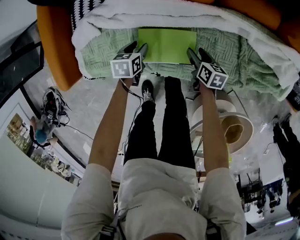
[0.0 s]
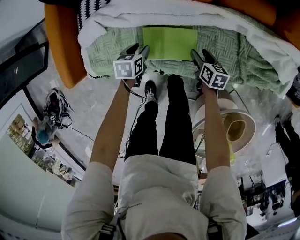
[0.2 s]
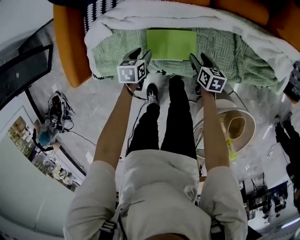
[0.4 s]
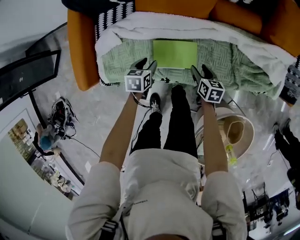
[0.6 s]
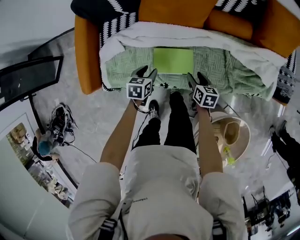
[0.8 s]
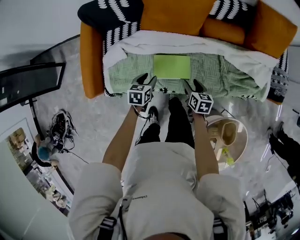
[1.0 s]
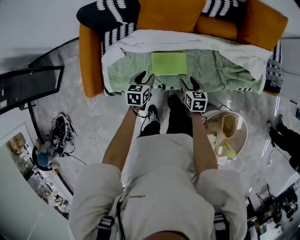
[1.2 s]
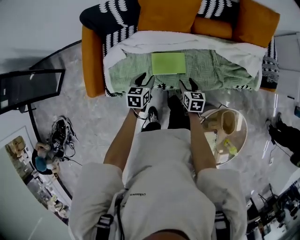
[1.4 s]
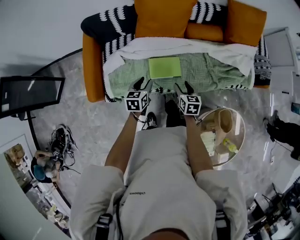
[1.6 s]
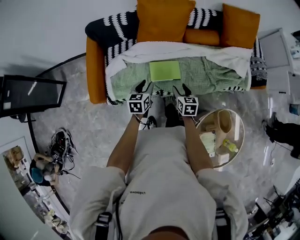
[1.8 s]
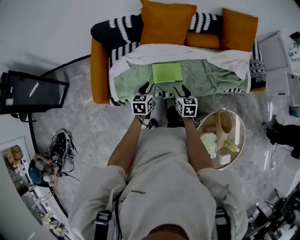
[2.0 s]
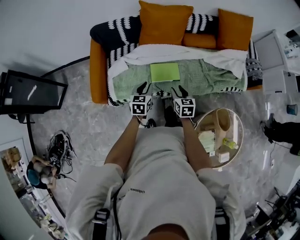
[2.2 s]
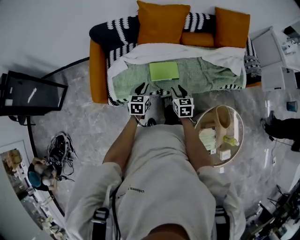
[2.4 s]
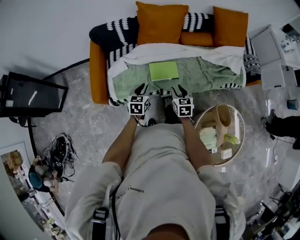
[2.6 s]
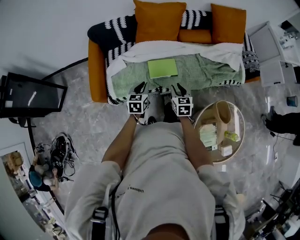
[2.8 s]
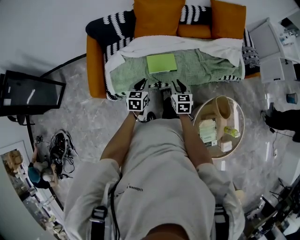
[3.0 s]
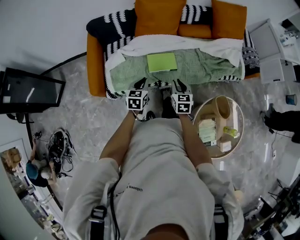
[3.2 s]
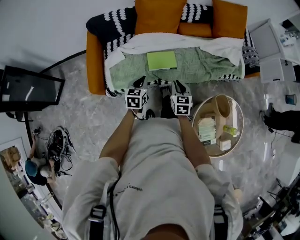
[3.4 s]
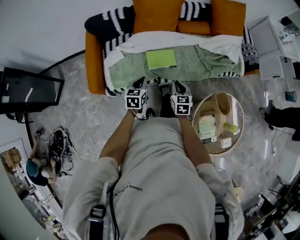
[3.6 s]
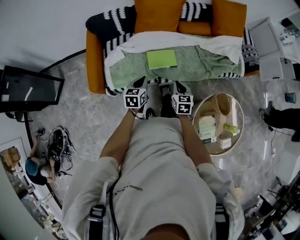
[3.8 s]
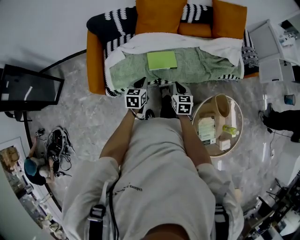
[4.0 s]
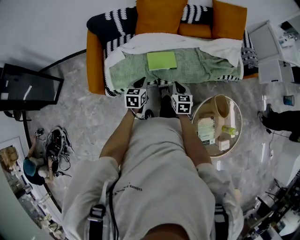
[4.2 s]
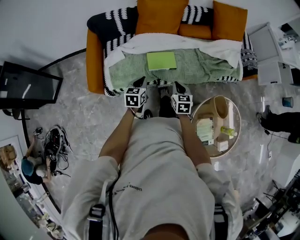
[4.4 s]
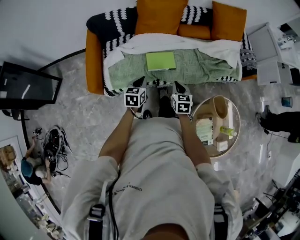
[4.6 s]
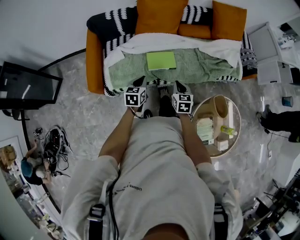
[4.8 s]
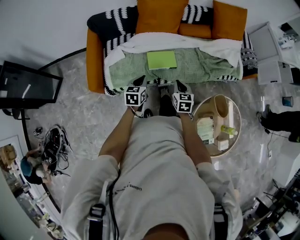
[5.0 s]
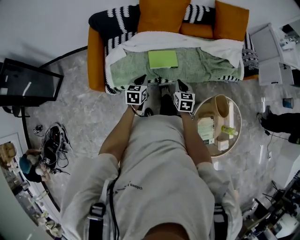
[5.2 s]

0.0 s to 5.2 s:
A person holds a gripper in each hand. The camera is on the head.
0.0 to 1.8 s: Both grippers travel together upward and backward, about 35 cm. The left gripper rotates approximately 30 degrees. Meanwhile the right gripper rotates approximately 30 degrees.
1.8 to 3.4 s: The left gripper heads backward, covering approximately 10 cm, and closes. Meanwhile the right gripper heads backward and upward, covering some 10 cm, and closes up.
3.4 to 5.2 s: The grippers make only small movements.

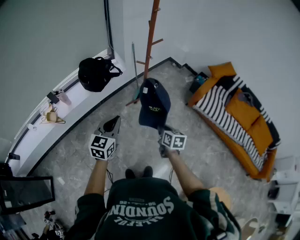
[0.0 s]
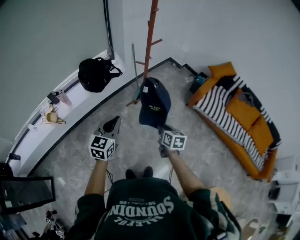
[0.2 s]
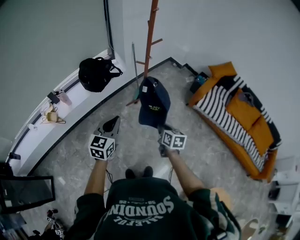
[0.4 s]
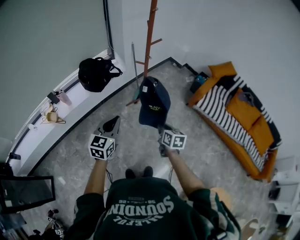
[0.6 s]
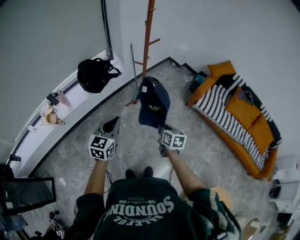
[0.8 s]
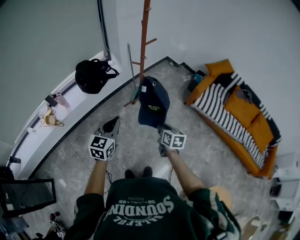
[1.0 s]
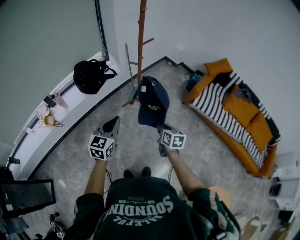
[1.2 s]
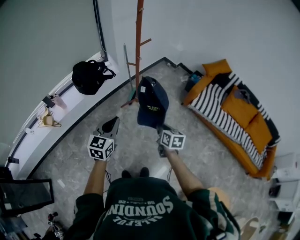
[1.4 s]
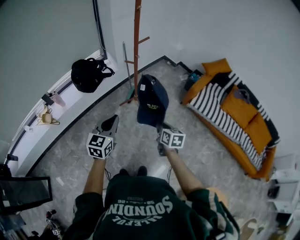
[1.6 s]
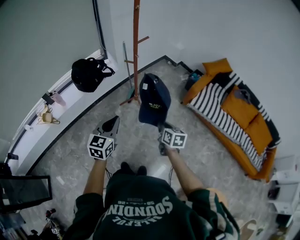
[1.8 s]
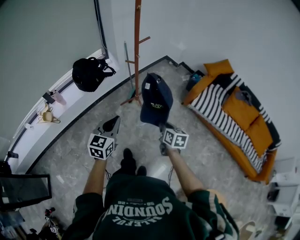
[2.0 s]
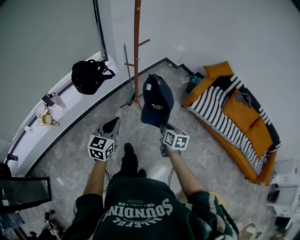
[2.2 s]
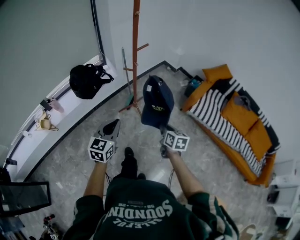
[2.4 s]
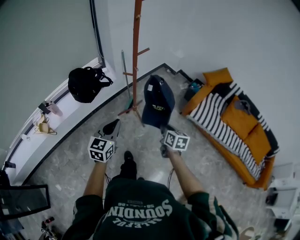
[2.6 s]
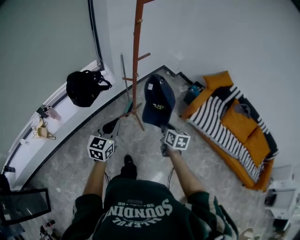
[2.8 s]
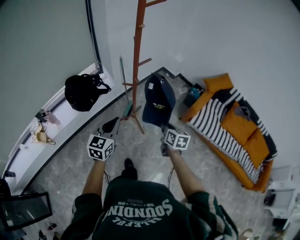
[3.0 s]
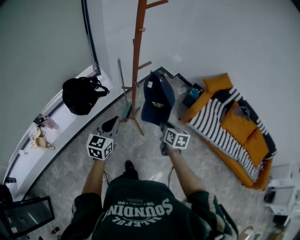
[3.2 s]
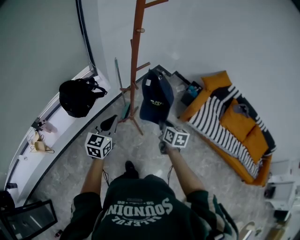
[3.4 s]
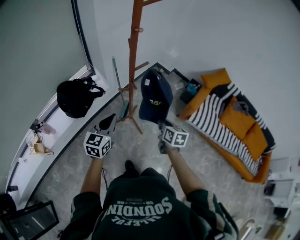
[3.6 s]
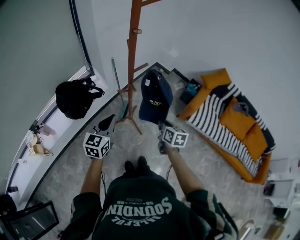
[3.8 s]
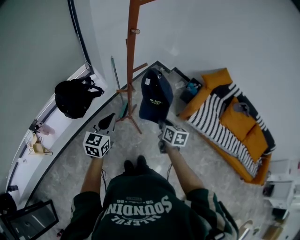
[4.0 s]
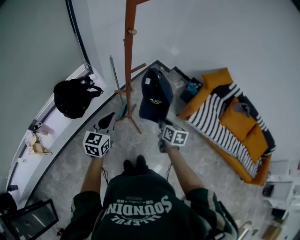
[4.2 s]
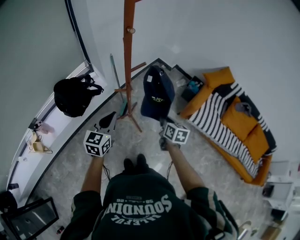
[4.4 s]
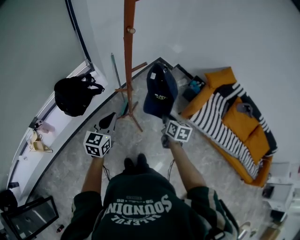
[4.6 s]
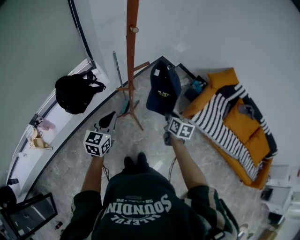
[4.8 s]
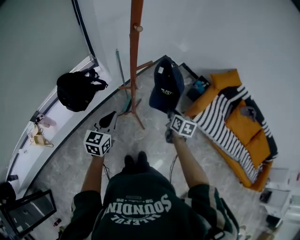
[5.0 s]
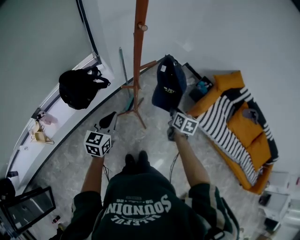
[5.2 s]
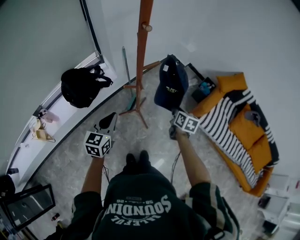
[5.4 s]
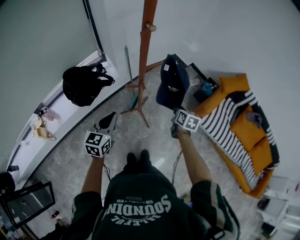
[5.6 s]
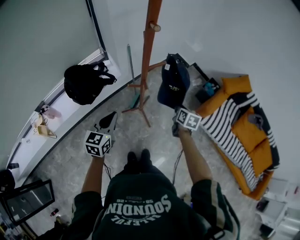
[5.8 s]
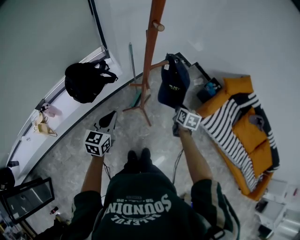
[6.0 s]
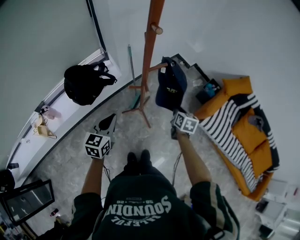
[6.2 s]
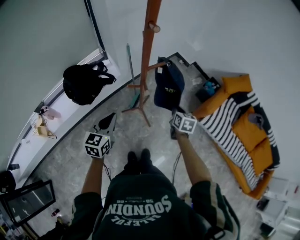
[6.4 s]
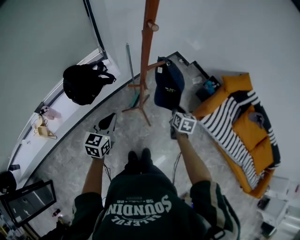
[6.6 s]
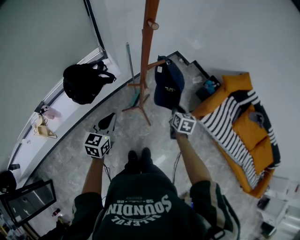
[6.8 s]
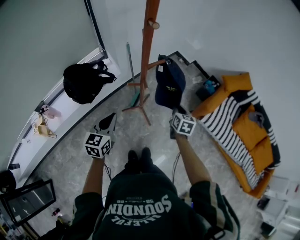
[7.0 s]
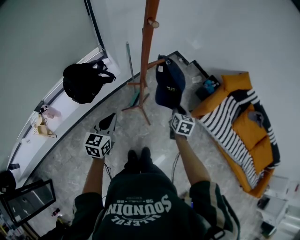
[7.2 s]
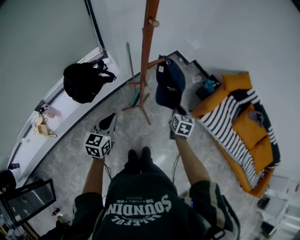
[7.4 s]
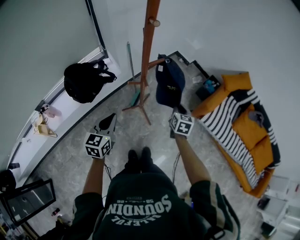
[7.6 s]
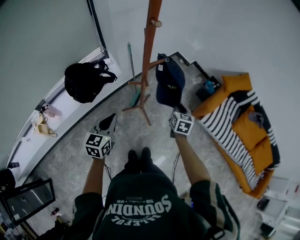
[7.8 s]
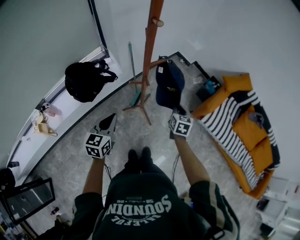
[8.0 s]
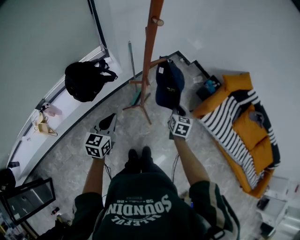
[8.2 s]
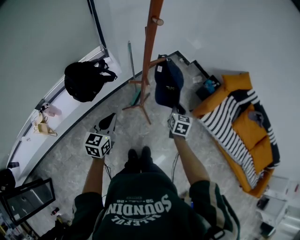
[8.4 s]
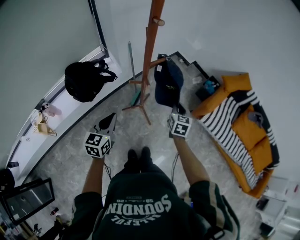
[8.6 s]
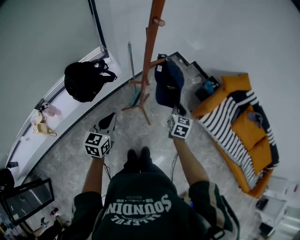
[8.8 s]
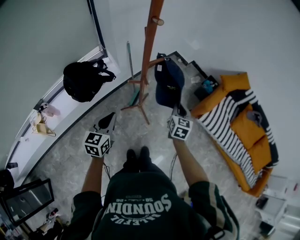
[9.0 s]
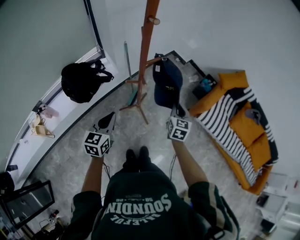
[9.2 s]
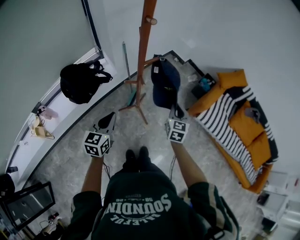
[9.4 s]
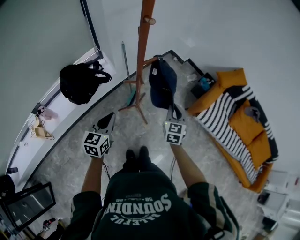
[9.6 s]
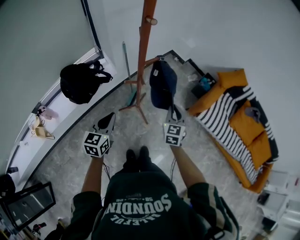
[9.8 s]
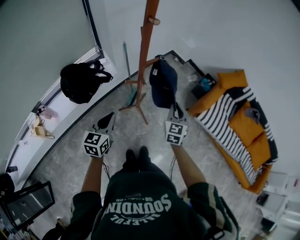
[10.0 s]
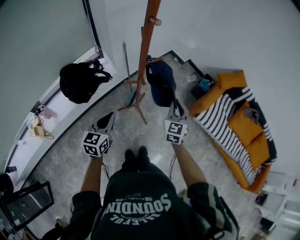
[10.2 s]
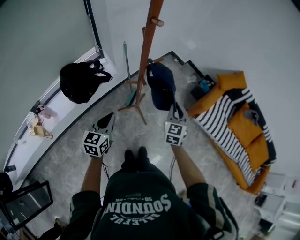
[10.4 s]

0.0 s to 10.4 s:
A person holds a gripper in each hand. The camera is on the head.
0.0 to 1.4 s: Both grippers travel together to the right, approximately 5 cm.
1.4 to 3.0 s: Both grippers travel together forward, roughly 20 cm.
3.0 to 4.4 s: Both grippers move forward, some 10 cm.
4.4 to 6.0 s: The right gripper goes roughly 10 cm forward; the left gripper travels to the left by approximately 5 cm.
6.0 to 7.4 s: The grippers move only a little.
7.4 to 9.0 s: The grippers move only a little.

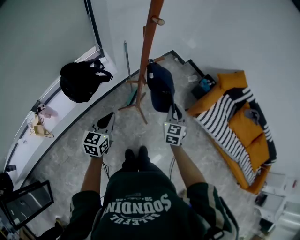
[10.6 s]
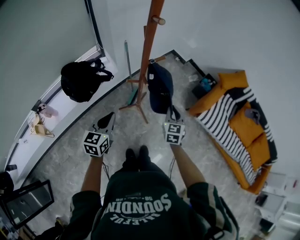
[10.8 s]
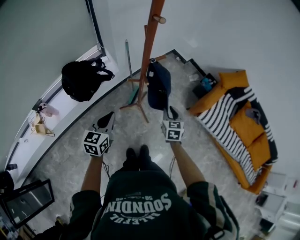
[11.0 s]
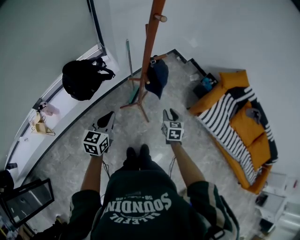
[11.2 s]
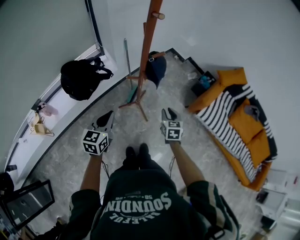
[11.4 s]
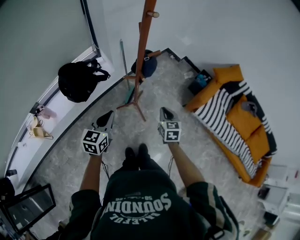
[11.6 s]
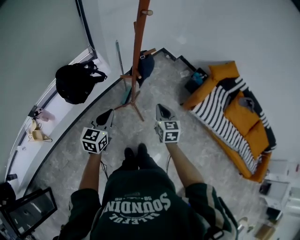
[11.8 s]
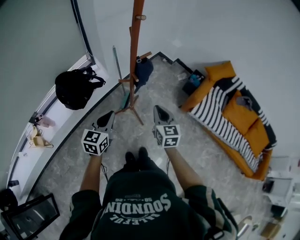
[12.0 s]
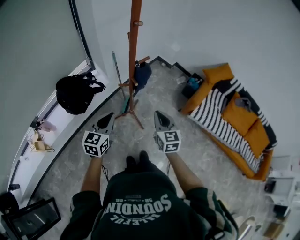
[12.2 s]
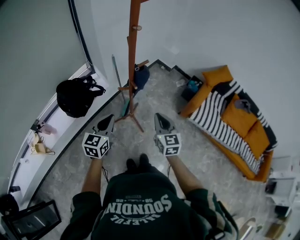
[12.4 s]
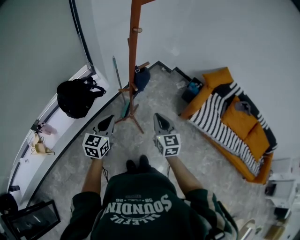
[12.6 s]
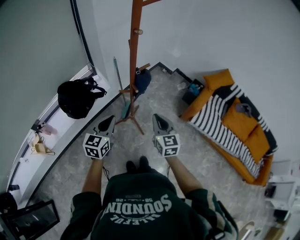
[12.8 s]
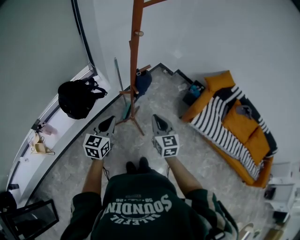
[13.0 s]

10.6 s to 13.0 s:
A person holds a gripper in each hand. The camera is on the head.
10.6 to 11.8 s: The right gripper is displaced backward by roughly 5 cm, and reaches about 10 cm downward, then returns.
11.8 to 13.0 s: The right gripper goes some 10 cm upward.

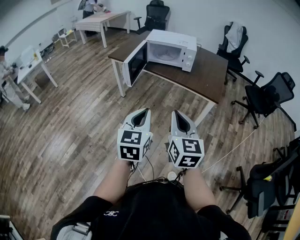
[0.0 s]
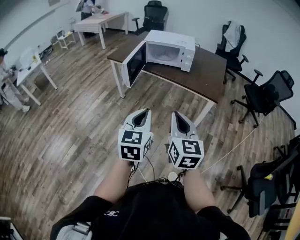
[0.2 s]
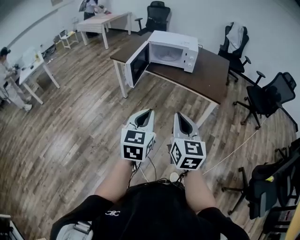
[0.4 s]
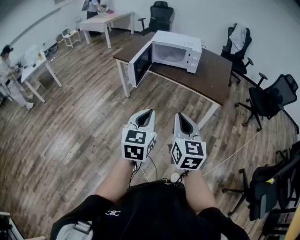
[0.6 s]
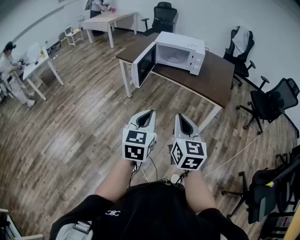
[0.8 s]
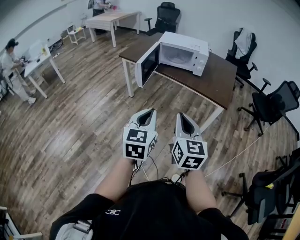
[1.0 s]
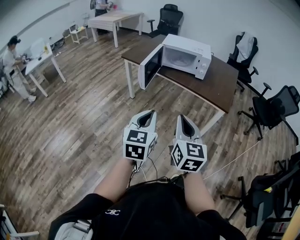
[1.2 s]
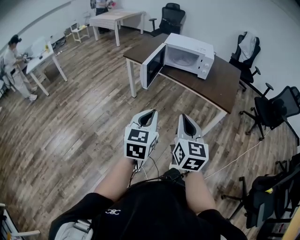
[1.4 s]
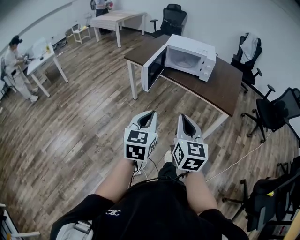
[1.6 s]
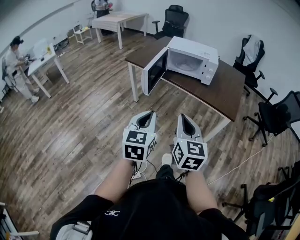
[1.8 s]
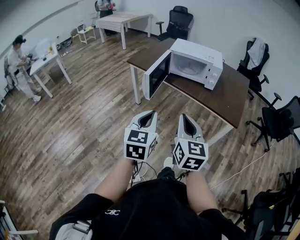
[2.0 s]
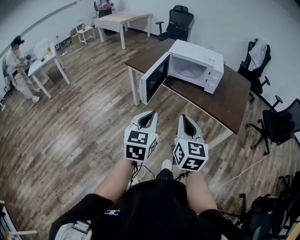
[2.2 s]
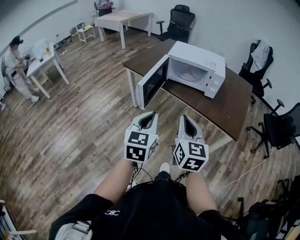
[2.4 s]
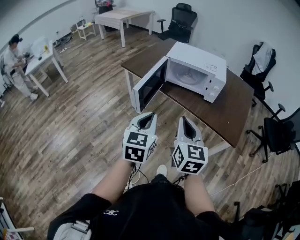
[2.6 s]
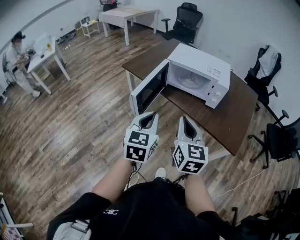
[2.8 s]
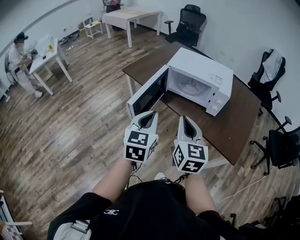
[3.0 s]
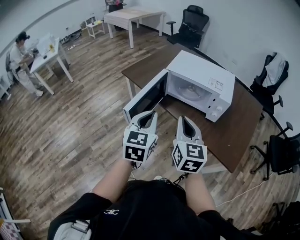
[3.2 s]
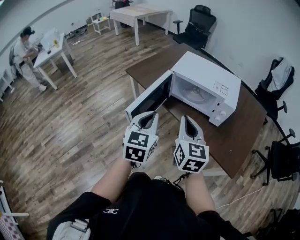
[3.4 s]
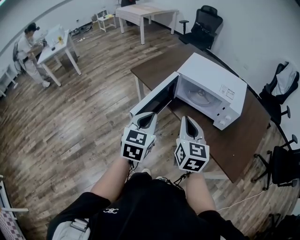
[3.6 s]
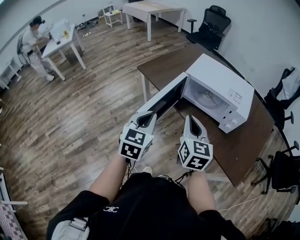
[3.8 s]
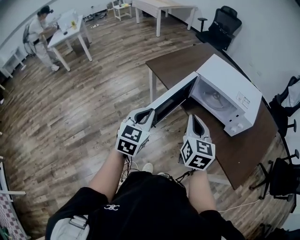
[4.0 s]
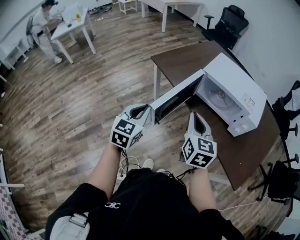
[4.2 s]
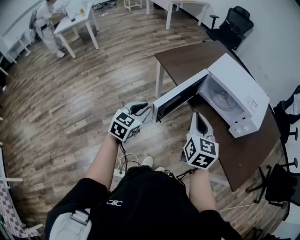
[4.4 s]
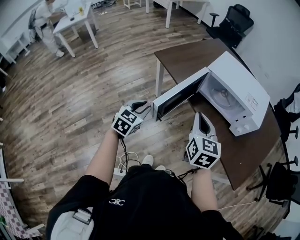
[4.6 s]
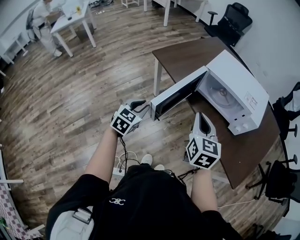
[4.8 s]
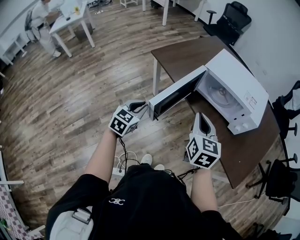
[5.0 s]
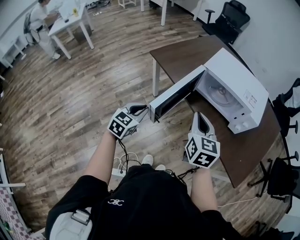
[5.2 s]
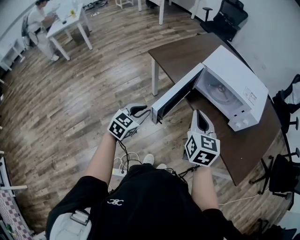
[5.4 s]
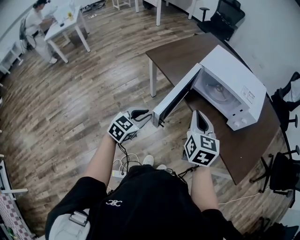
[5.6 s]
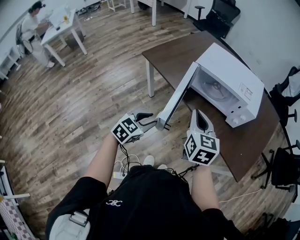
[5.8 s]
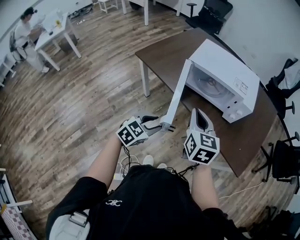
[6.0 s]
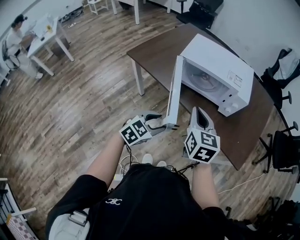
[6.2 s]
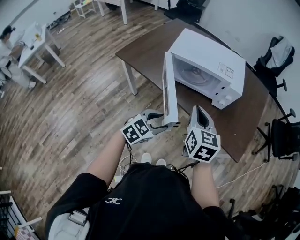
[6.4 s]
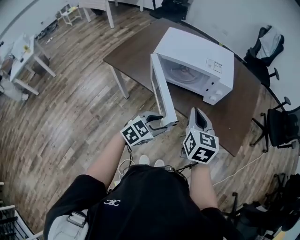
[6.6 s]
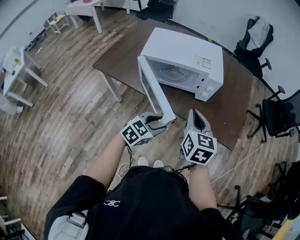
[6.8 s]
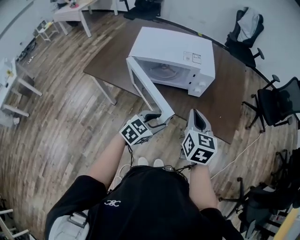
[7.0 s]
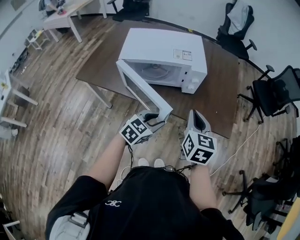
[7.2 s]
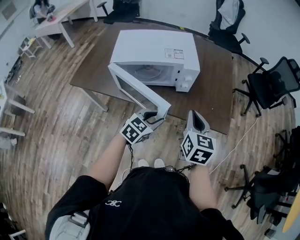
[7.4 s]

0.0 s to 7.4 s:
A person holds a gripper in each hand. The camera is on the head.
0.0 to 1.4 s: The grippers both shift to the left by about 5 cm.
1.4 to 3.0 s: The grippers both shift forward by about 35 cm.
3.0 to 4.4 s: The right gripper heads forward and to the left, covering some 15 cm. The left gripper goes roughly 20 cm to the left, downward and forward.
4.4 to 6.0 s: The left gripper heads to the right and downward, covering approximately 15 cm, changes its angle by some 30 degrees, and opens its fingers.
6.0 to 7.4 s: The left gripper moves some 20 cm, and changes its angle by roughly 30 degrees. The right gripper changes place by roughly 20 cm, and rotates roughly 30 degrees.
